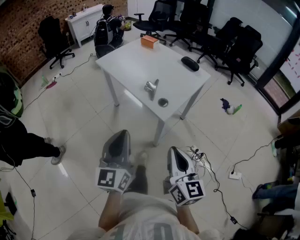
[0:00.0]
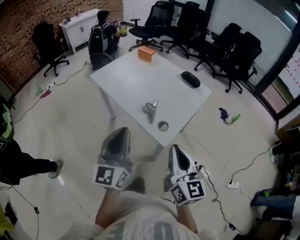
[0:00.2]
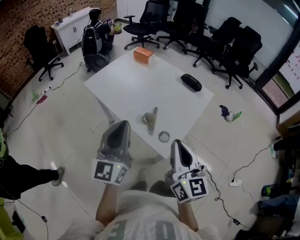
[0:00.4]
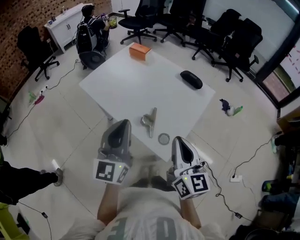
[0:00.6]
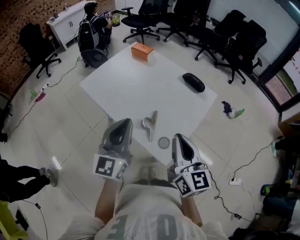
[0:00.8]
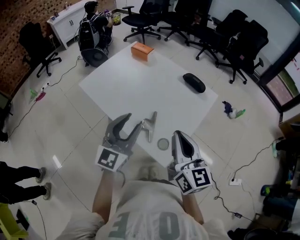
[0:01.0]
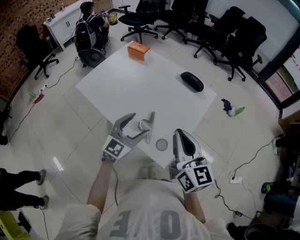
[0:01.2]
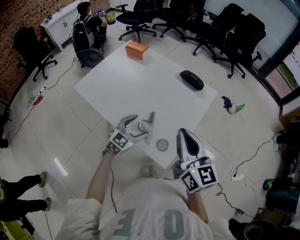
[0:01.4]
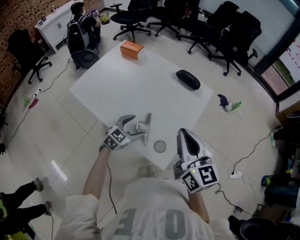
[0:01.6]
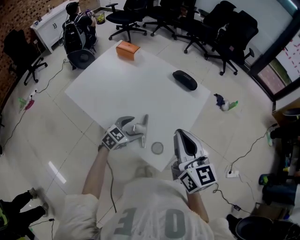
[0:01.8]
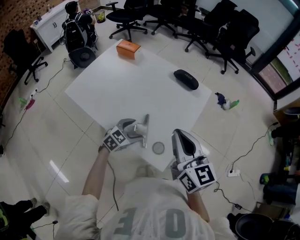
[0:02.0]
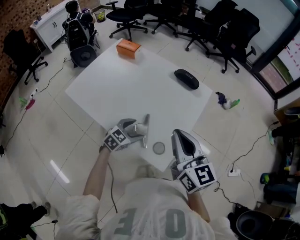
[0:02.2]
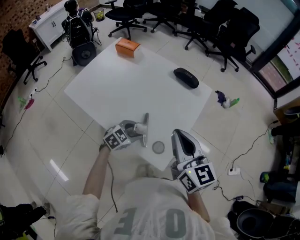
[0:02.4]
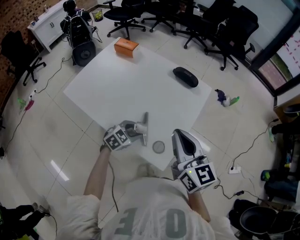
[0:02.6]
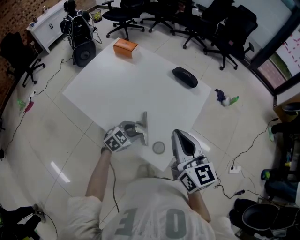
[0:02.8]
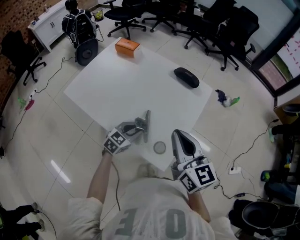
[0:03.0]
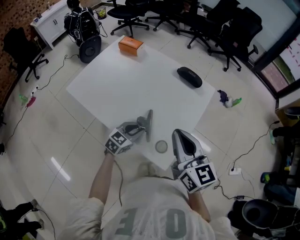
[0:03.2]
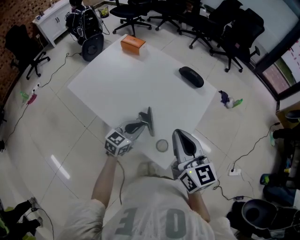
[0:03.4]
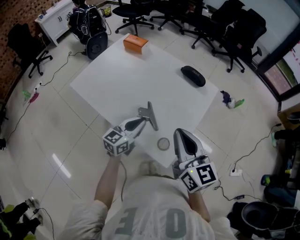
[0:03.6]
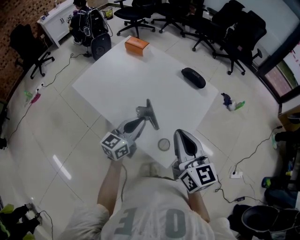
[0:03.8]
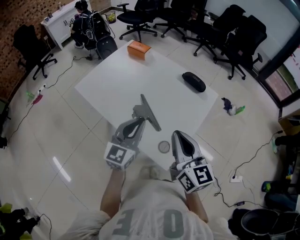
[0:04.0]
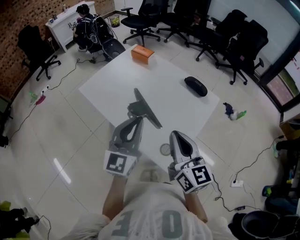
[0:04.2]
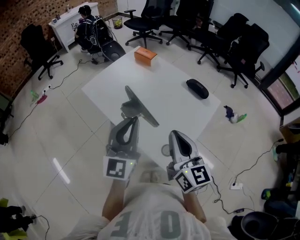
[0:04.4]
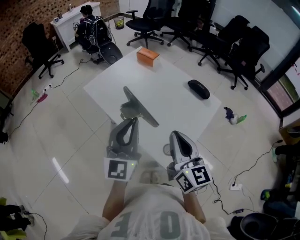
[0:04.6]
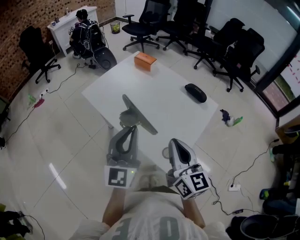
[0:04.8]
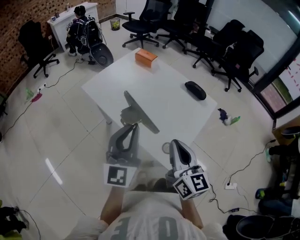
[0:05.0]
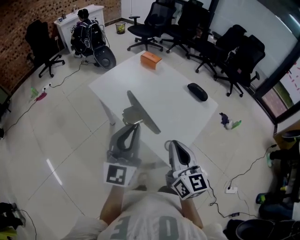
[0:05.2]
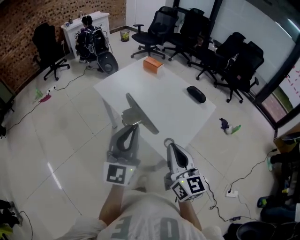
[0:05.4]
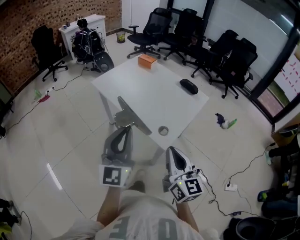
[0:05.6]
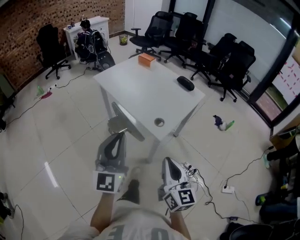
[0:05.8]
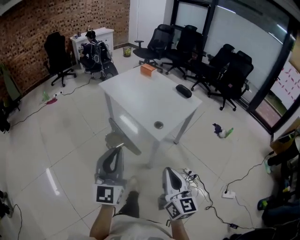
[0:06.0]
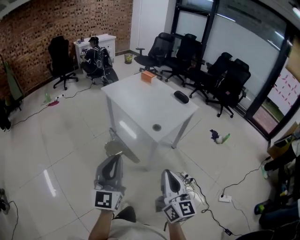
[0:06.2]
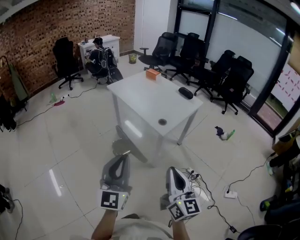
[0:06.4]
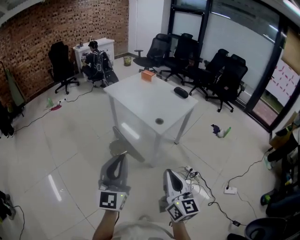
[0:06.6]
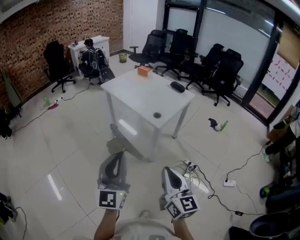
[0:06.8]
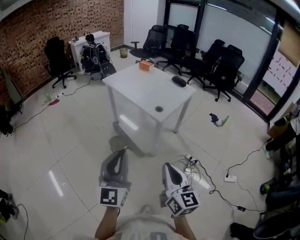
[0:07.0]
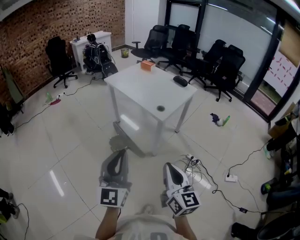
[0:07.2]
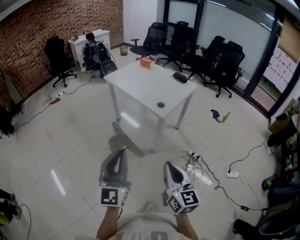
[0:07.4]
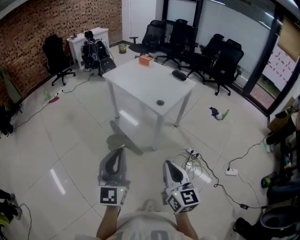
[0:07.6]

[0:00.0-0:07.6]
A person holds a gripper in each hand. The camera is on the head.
0:00.0 to 0:01.6: The left gripper changes place by about 40 cm, angles its fingers downward, by about 40 degrees, and opens up; the right gripper shifts by about 35 cm.
0:01.6 to 0:03.0: The left gripper closes.
0:03.0 to 0:04.6: The right gripper shifts by some 5 cm; the left gripper moves upward, approximately 30 cm, and tilts its fingers approximately 40 degrees upward.
0:04.6 to 0:06.0: The two grippers go approximately 40 cm backward.
0:06.0 to 0:07.6: Both grippers move backward, some 15 cm.

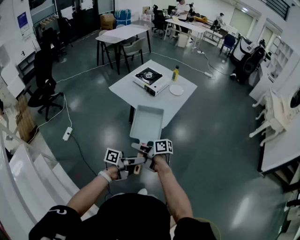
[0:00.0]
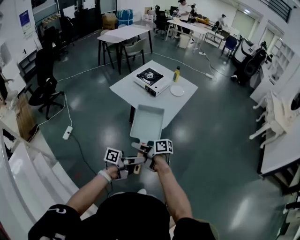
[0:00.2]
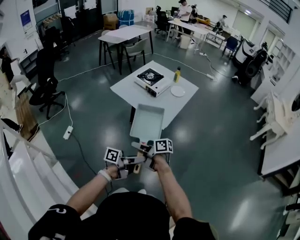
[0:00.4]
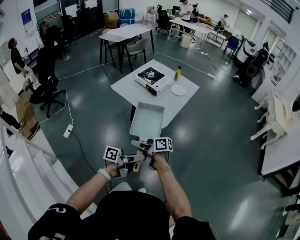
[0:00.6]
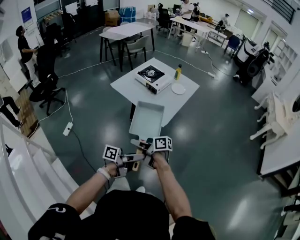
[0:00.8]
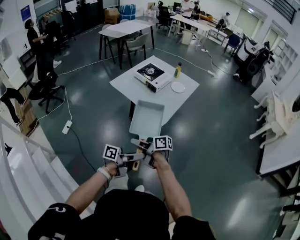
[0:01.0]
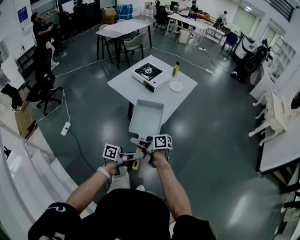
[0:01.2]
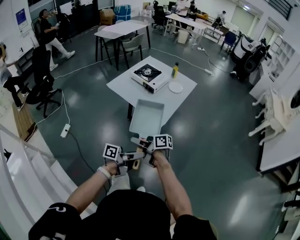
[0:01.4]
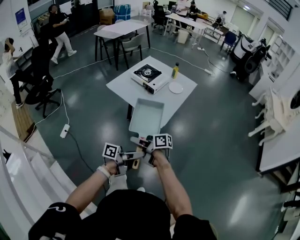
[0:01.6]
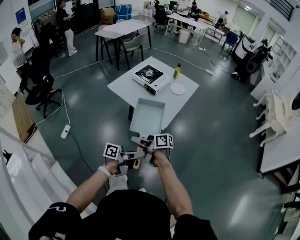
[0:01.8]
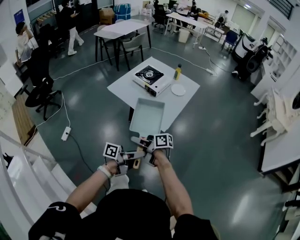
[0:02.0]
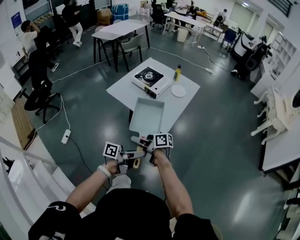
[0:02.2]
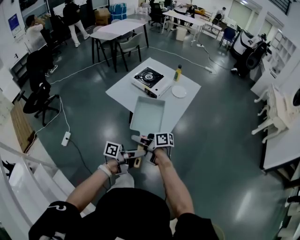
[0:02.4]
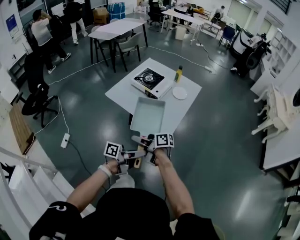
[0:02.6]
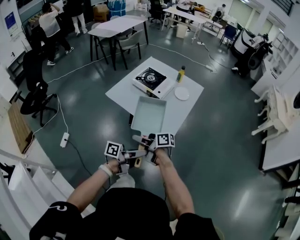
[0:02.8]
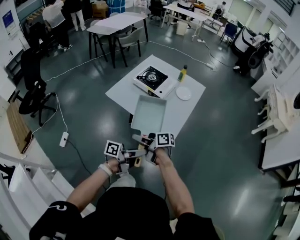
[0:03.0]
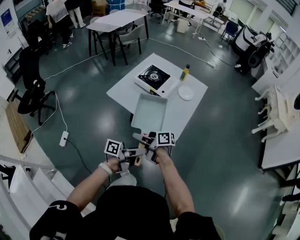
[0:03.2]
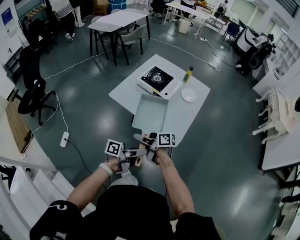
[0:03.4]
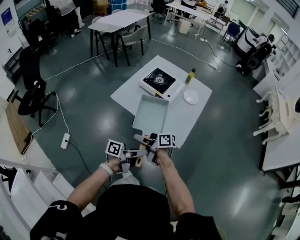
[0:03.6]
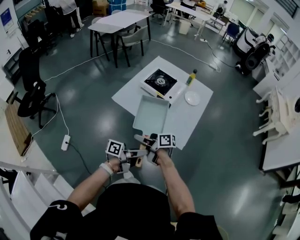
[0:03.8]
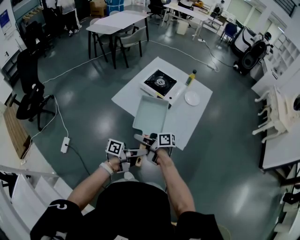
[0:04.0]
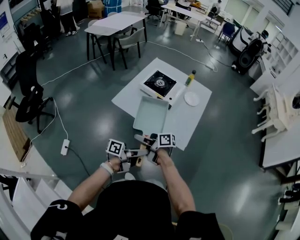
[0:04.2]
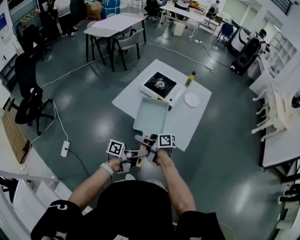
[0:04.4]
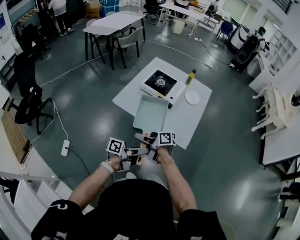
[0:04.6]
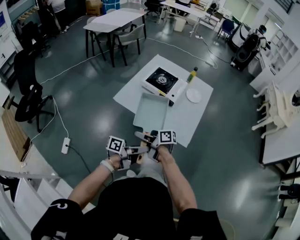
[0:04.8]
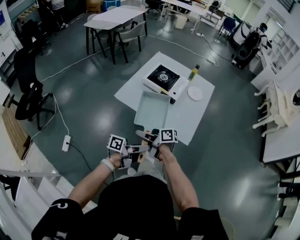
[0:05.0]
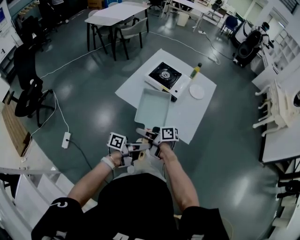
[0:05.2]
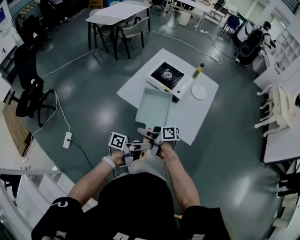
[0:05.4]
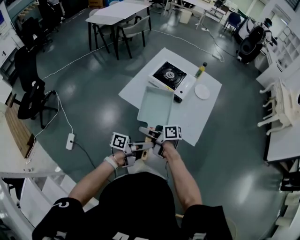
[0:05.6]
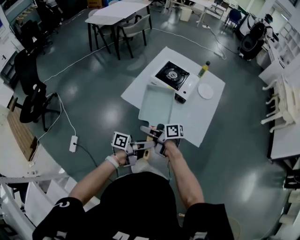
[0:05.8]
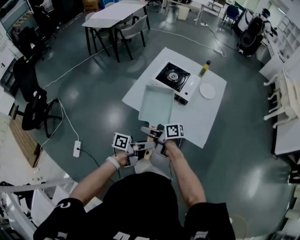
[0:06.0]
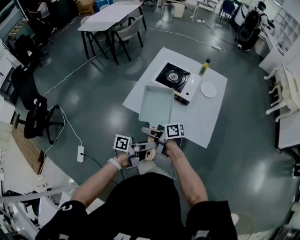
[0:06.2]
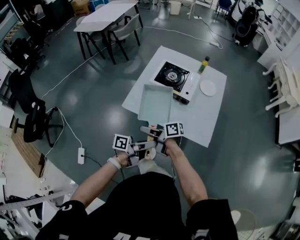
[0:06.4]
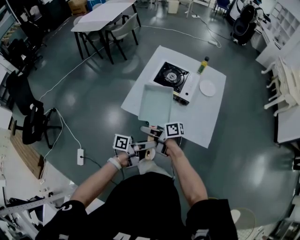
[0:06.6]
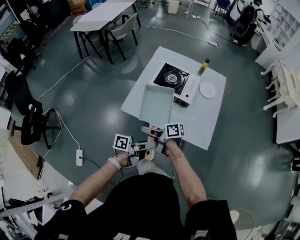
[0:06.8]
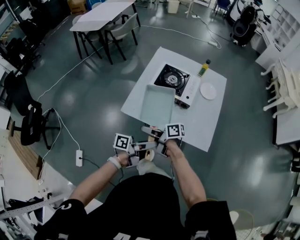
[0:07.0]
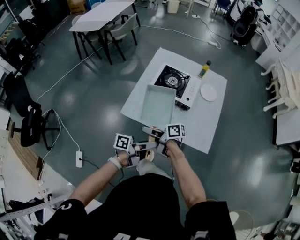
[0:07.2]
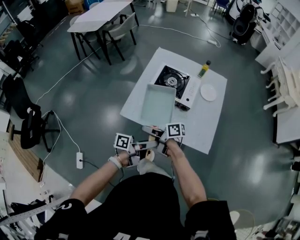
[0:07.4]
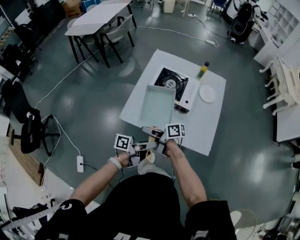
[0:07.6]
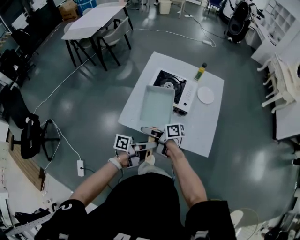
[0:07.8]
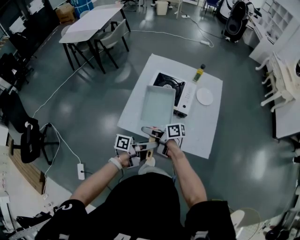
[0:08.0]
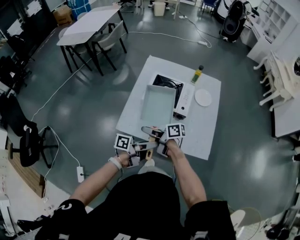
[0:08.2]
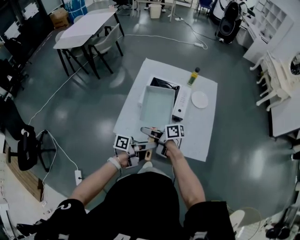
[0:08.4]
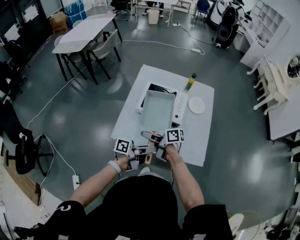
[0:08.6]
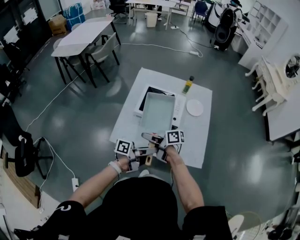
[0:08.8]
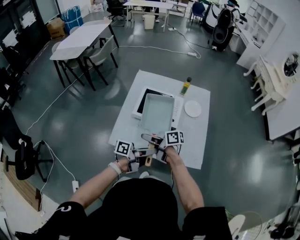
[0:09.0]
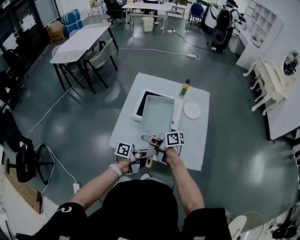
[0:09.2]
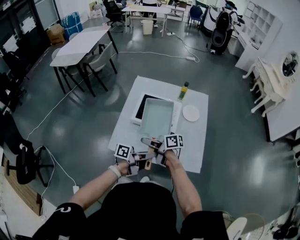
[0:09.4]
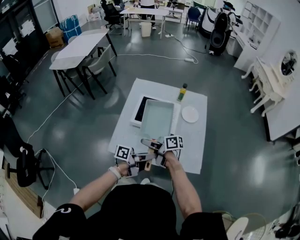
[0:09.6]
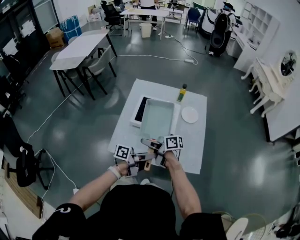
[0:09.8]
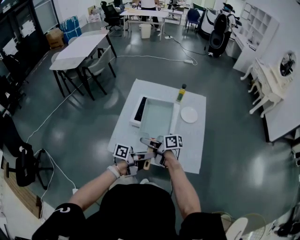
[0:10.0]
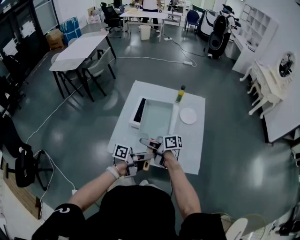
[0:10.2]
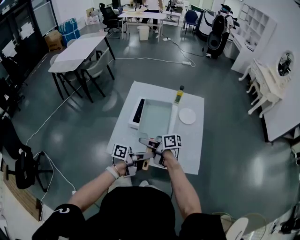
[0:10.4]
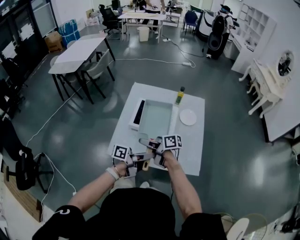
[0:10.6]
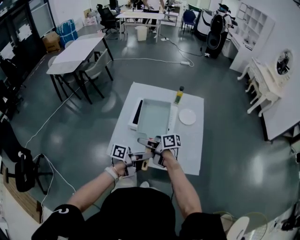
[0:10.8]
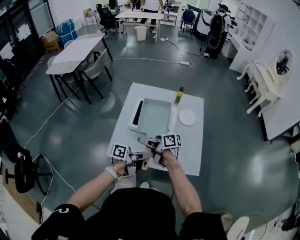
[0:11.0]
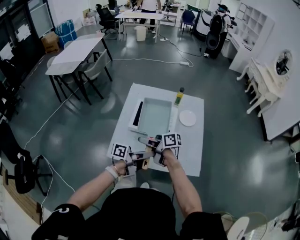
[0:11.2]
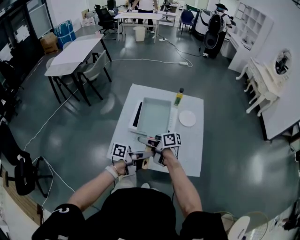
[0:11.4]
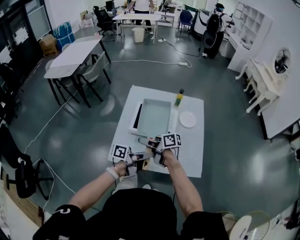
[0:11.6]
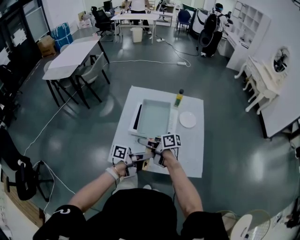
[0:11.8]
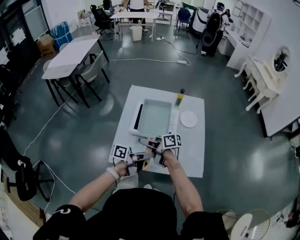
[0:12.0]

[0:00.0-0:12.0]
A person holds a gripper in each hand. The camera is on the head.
0:01.6 to 0:03.0: The right gripper ends up some 20 cm from where it was.
0:03.0 to 0:04.4: The right gripper changes place by about 15 cm.
0:04.4 to 0:06.0: The right gripper moves approximately 10 cm.
0:06.0 to 0:07.6: The right gripper moves some 15 cm.
0:07.6 to 0:09.0: The right gripper ends up some 10 cm from where it was.
0:10.4 to 0:12.0: The right gripper changes place by approximately 5 cm.

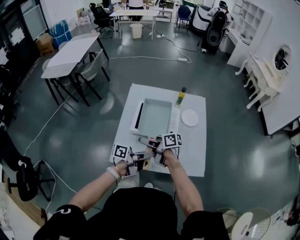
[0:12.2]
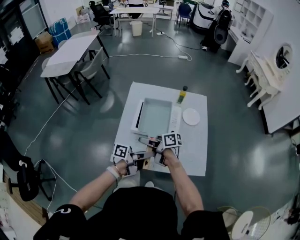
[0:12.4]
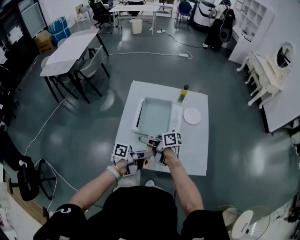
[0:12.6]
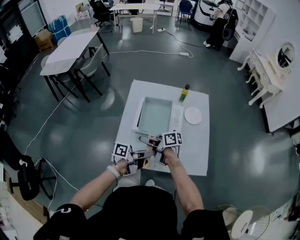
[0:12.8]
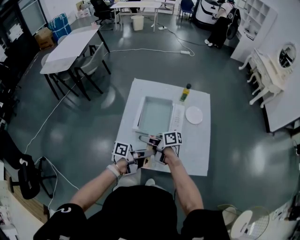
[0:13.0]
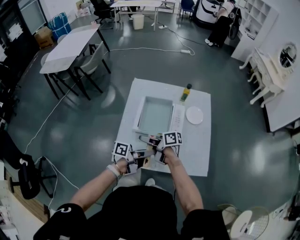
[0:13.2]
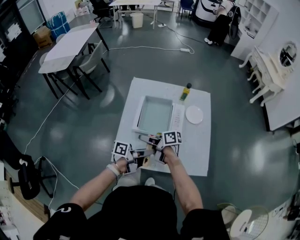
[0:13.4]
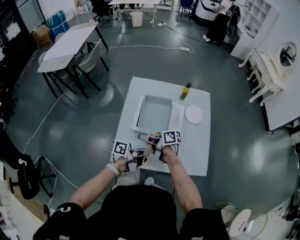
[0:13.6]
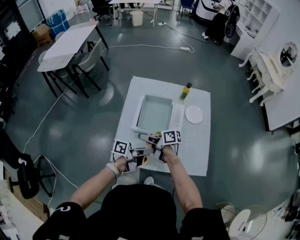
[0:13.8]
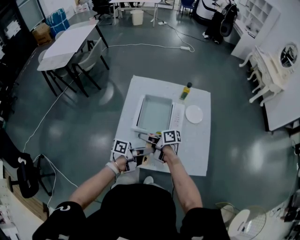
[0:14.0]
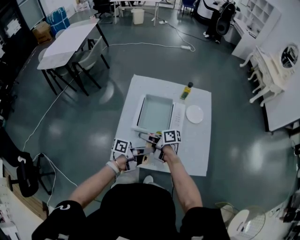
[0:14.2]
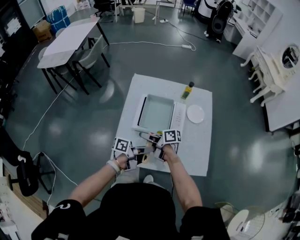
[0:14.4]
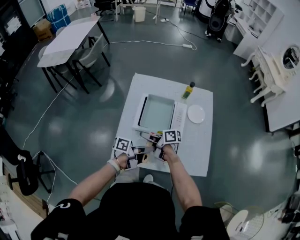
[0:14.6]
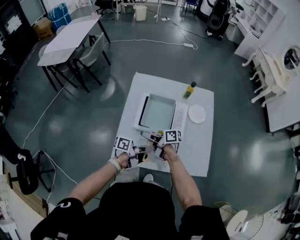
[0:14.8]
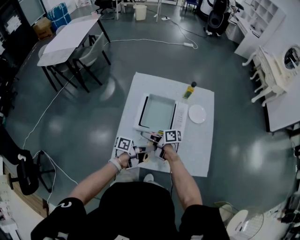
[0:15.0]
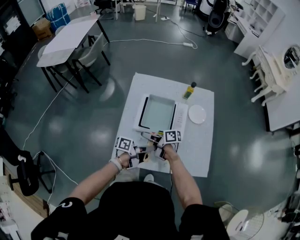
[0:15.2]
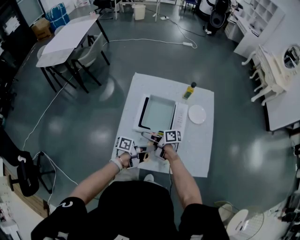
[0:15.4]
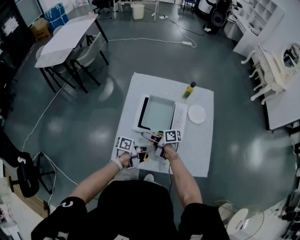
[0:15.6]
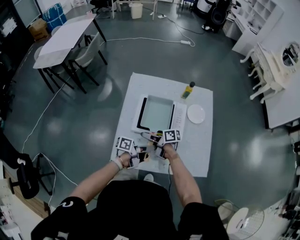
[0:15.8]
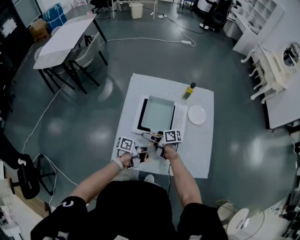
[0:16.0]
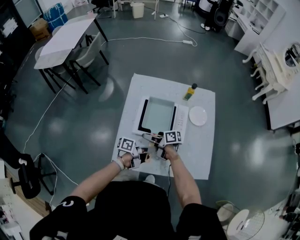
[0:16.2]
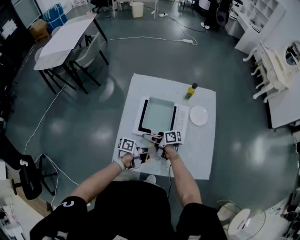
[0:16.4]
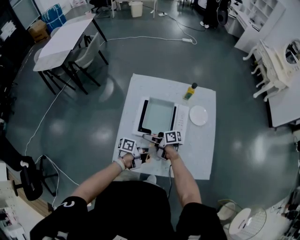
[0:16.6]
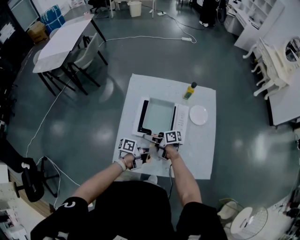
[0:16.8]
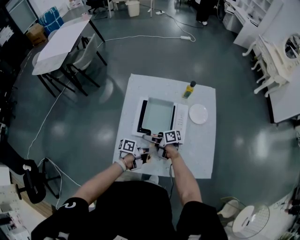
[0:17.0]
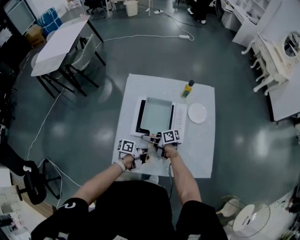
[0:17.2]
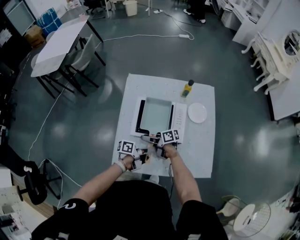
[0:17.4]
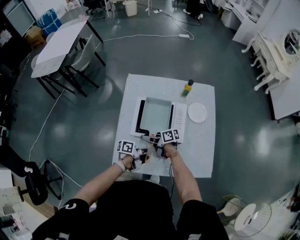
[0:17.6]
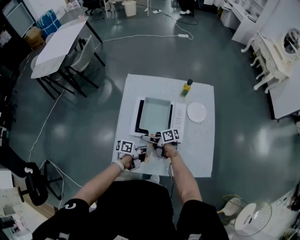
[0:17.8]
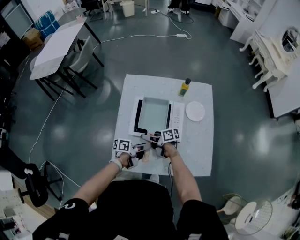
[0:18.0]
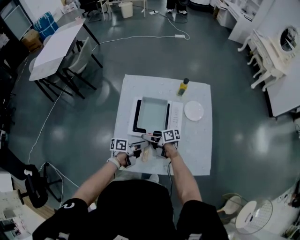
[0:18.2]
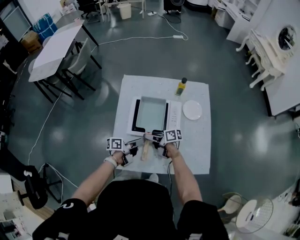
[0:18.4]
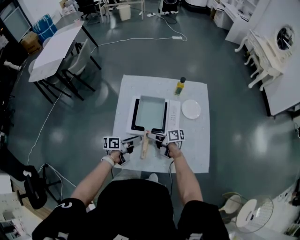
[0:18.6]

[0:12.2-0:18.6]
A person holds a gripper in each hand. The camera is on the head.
0:12.2 to 0:13.8: The right gripper moves about 5 cm.
0:13.8 to 0:15.4: The right gripper moves downward, about 5 cm.
0:17.0 to 0:18.6: The right gripper changes place by some 5 cm.
